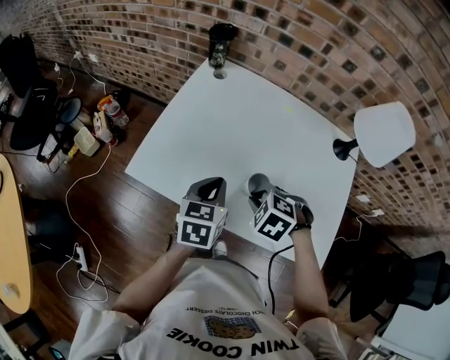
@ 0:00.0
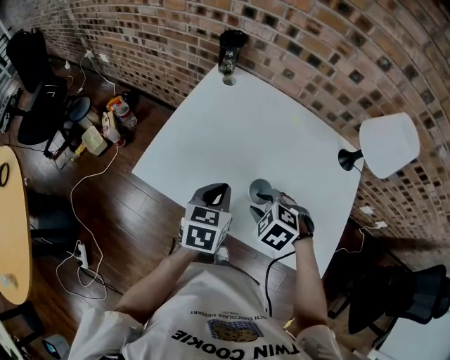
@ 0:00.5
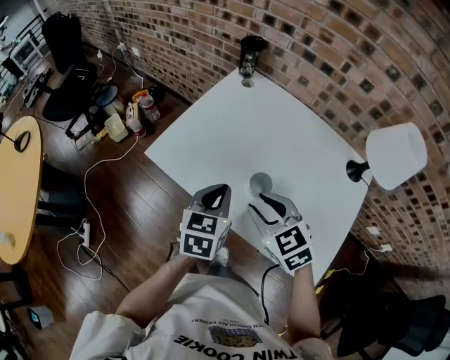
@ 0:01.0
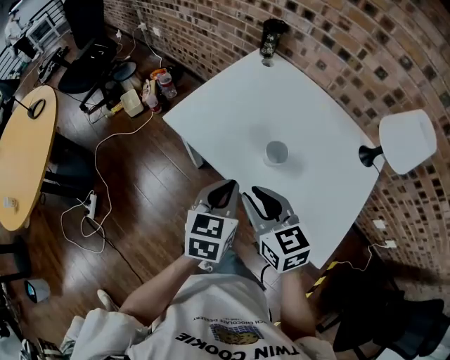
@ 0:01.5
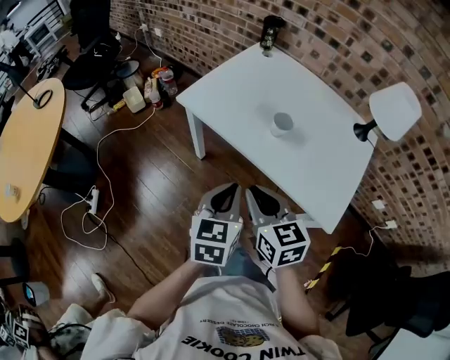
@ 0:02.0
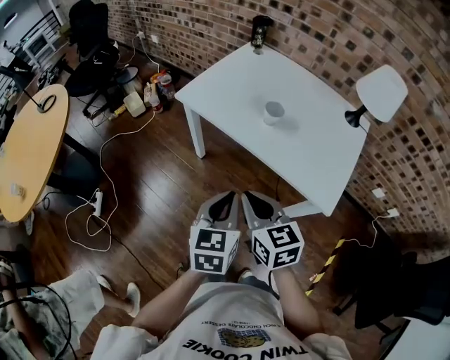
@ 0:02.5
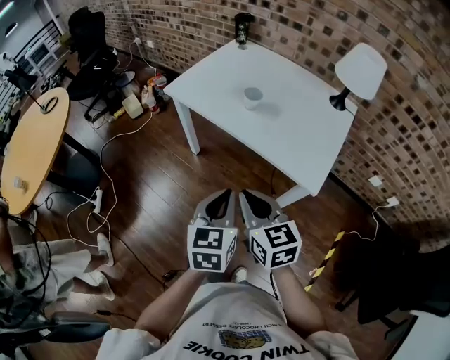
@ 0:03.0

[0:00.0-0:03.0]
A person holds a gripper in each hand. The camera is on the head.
0:00.0 to 0:01.5: The left gripper is displaced backward by about 15 cm. The right gripper heads backward, upward and to the left, covering approximately 15 cm, and tips its fingers upward by about 50 degrees.
0:01.5 to 0:03.0: Both grippers travel together backward, approximately 30 cm.

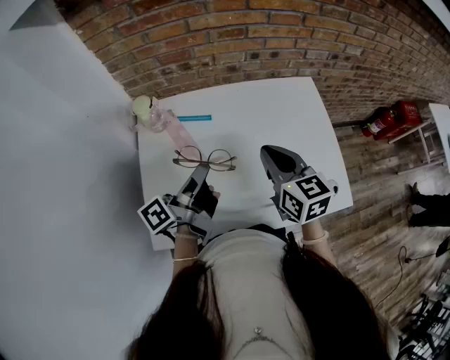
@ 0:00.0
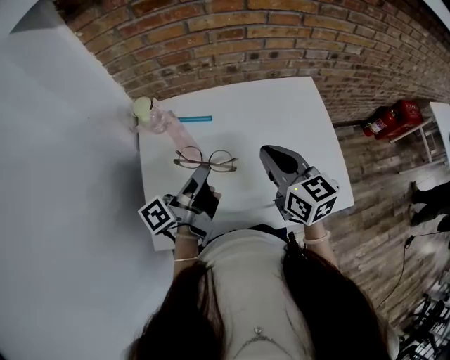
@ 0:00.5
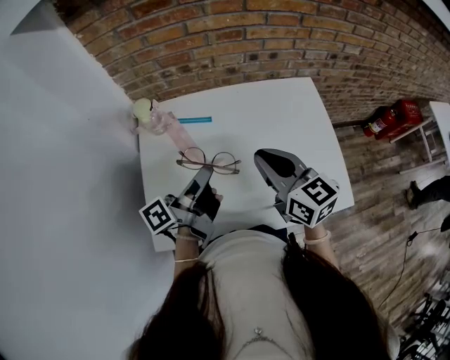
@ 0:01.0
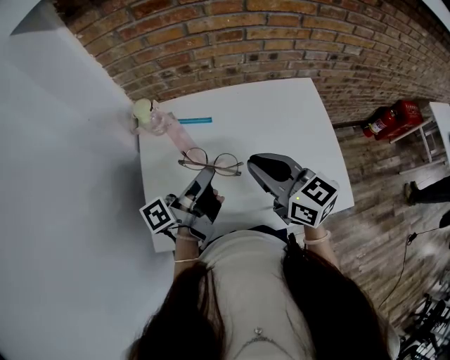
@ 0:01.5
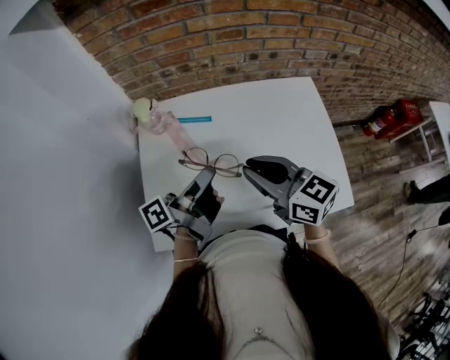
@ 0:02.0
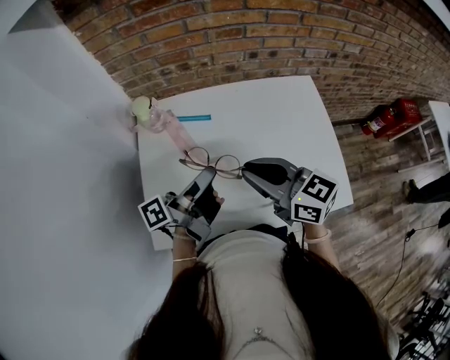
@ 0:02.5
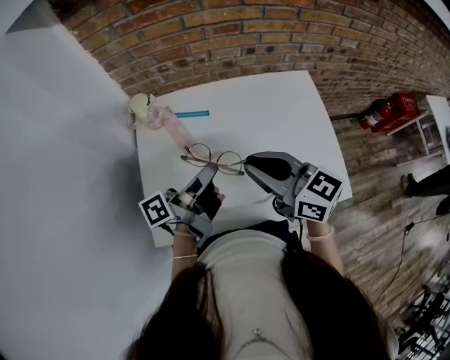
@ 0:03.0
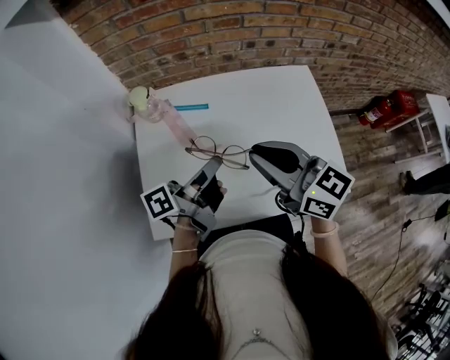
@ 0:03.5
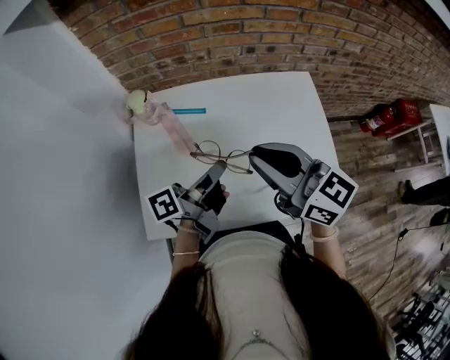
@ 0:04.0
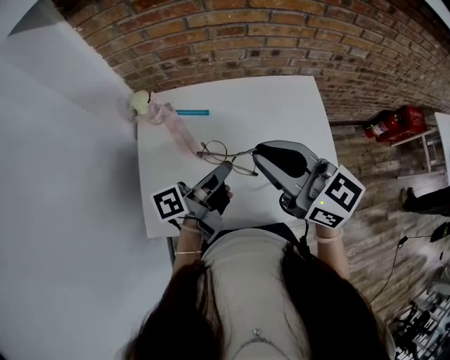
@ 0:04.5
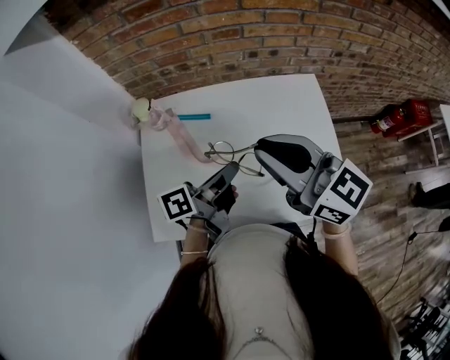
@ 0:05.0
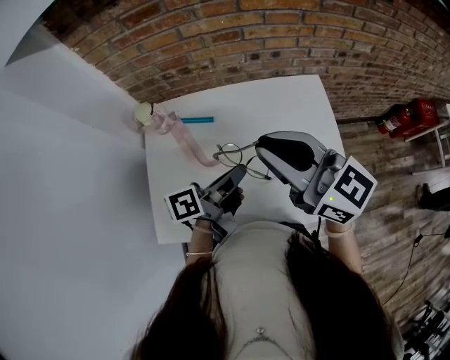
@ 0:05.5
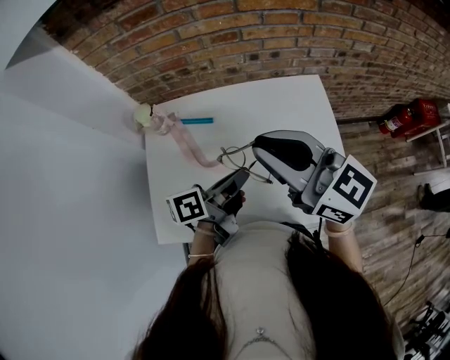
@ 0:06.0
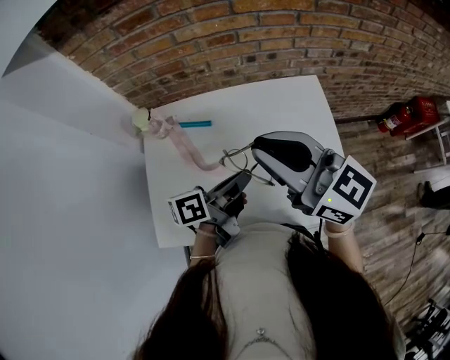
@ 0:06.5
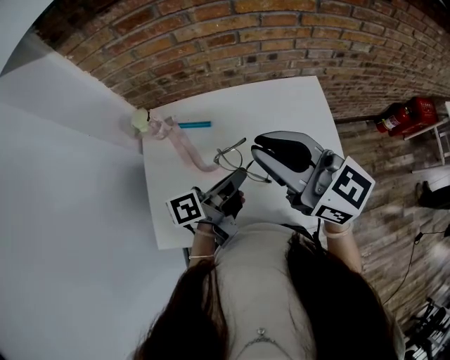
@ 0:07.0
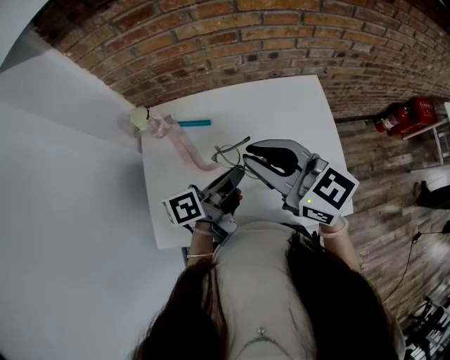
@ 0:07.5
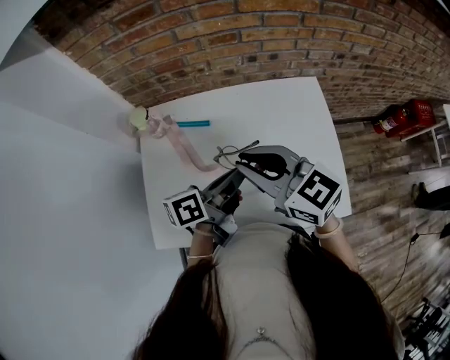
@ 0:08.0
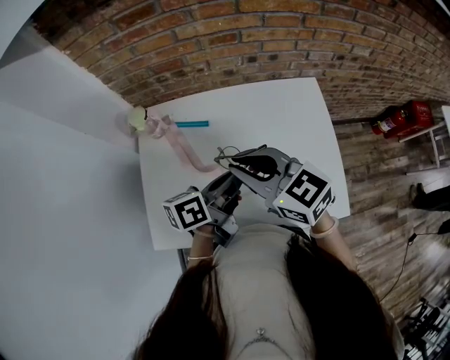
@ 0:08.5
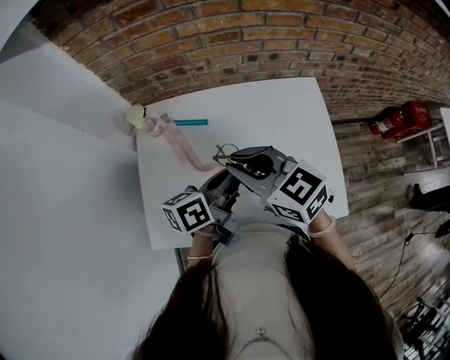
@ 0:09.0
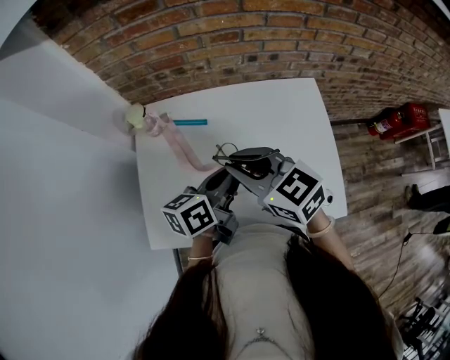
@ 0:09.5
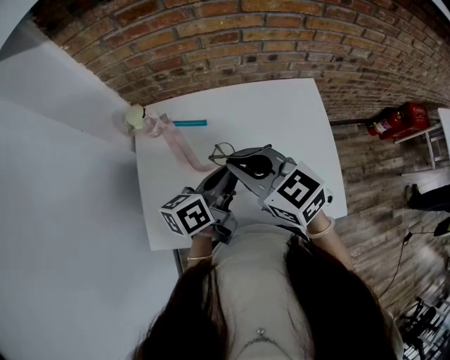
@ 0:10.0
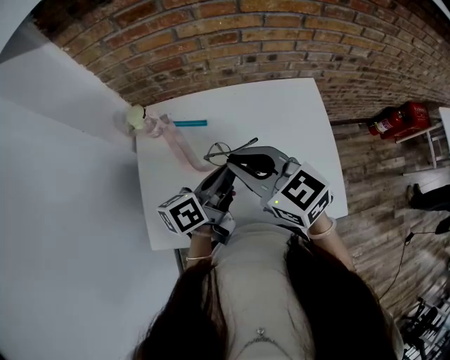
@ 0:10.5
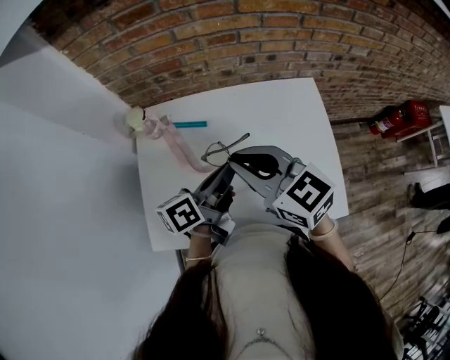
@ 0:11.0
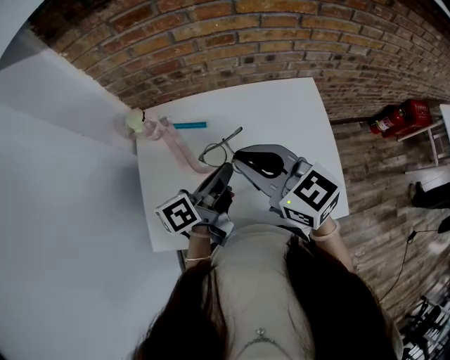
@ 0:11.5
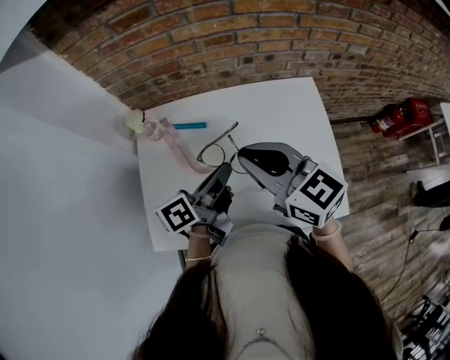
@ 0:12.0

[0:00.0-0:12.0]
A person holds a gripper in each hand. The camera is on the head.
0:00.0 to 0:02.0: The right gripper shifts by about 5 cm, and turns by about 30 degrees.
0:02.0 to 0:04.0: The right gripper shifts some 10 cm upward.
0:04.0 to 0:06.0: The right gripper goes about 5 cm upward.
0:06.0 to 0:08.0: The right gripper shifts about 10 cm downward.
0:10.0 to 0:12.0: The right gripper ends up approximately 5 cm from where it was.

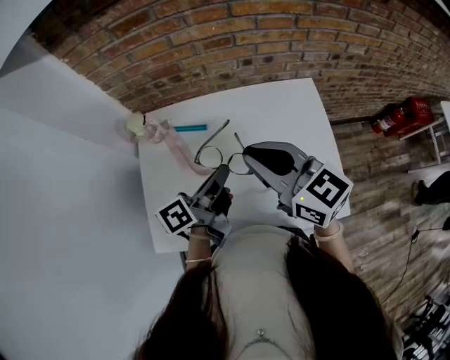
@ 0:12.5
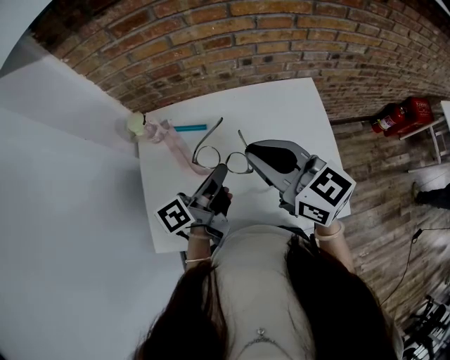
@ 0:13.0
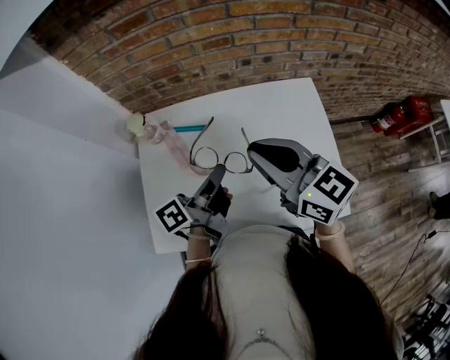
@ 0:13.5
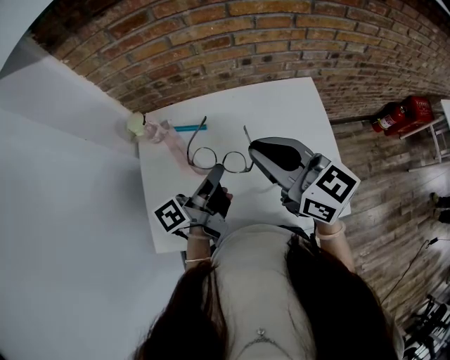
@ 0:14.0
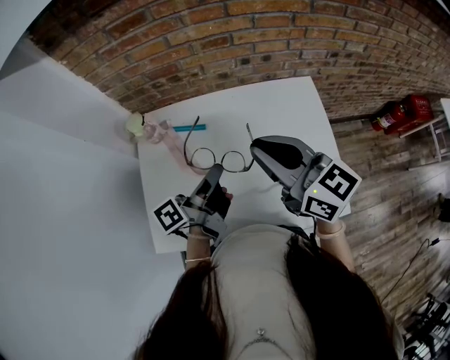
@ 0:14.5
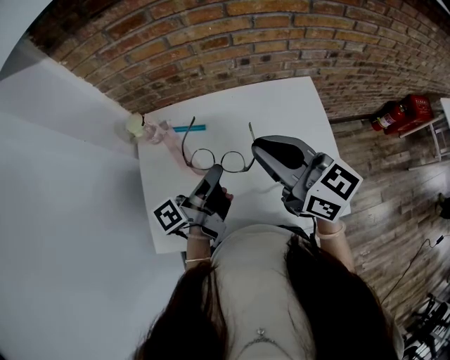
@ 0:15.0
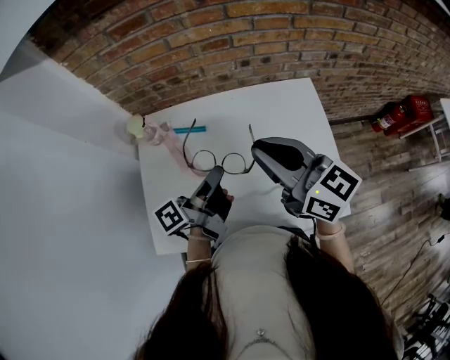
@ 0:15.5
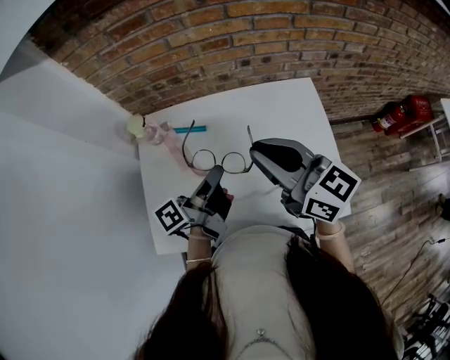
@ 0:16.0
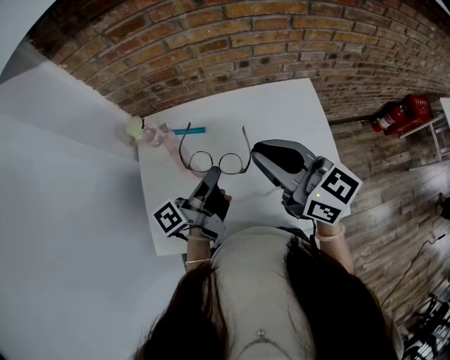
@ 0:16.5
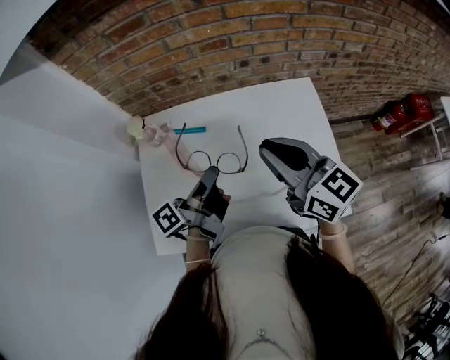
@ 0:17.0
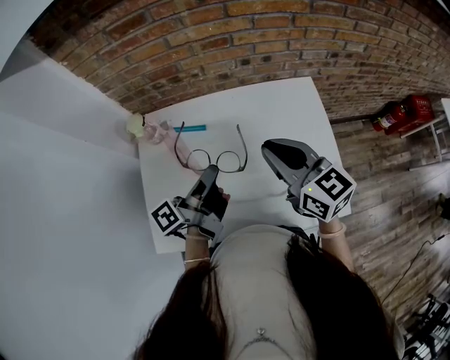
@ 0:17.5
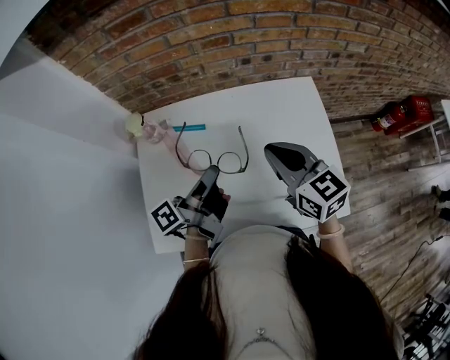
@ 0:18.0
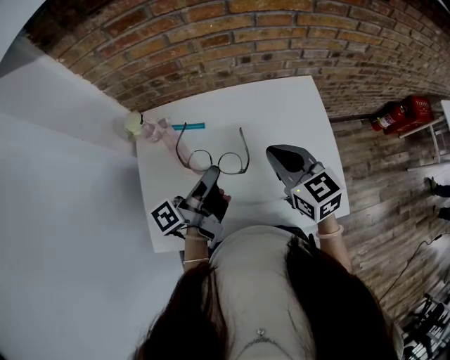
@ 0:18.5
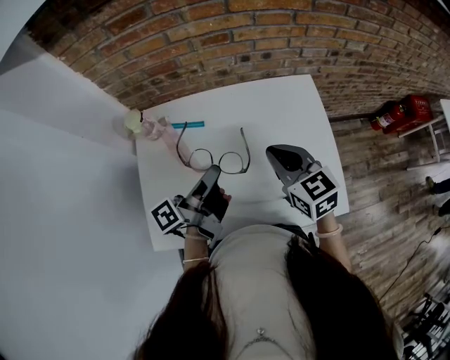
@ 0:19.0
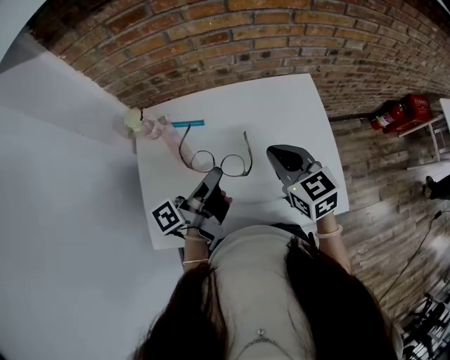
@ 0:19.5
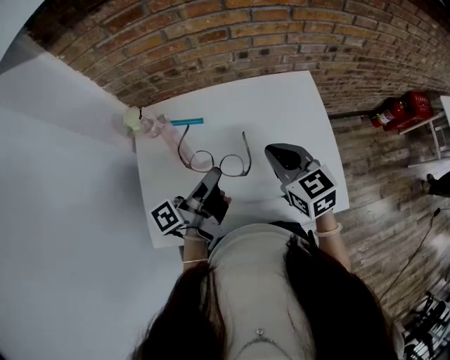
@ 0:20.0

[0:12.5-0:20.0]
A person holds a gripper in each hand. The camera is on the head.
0:16.5 to 0:18.0: The right gripper is displaced downward by some 10 cm.

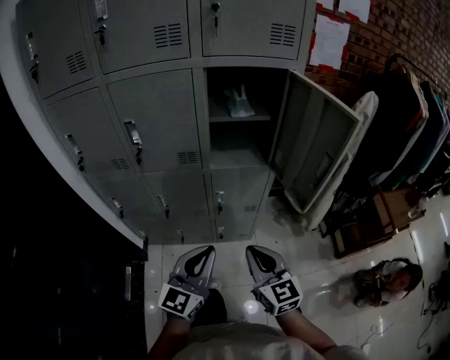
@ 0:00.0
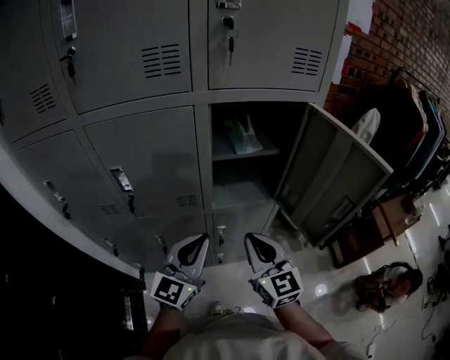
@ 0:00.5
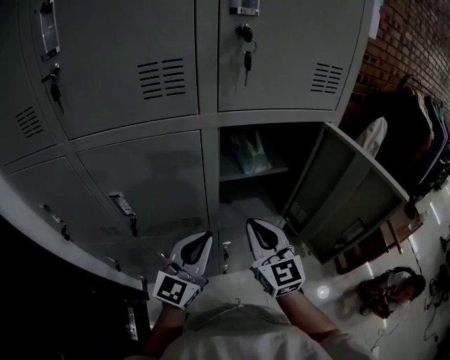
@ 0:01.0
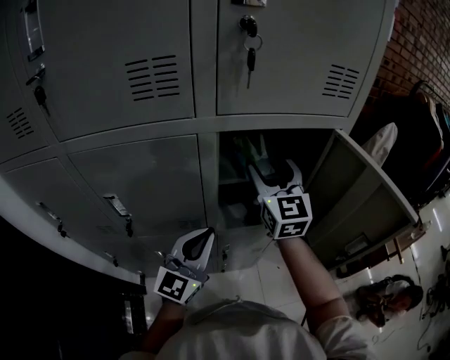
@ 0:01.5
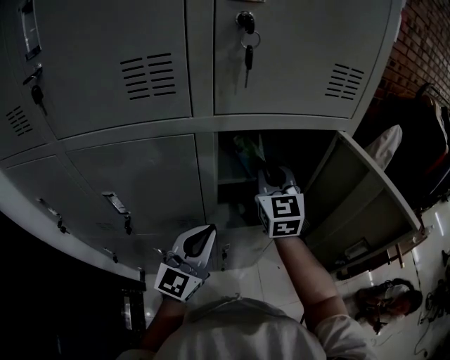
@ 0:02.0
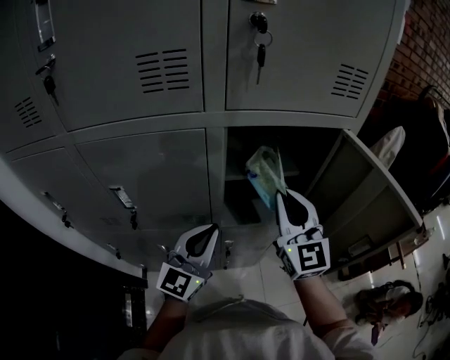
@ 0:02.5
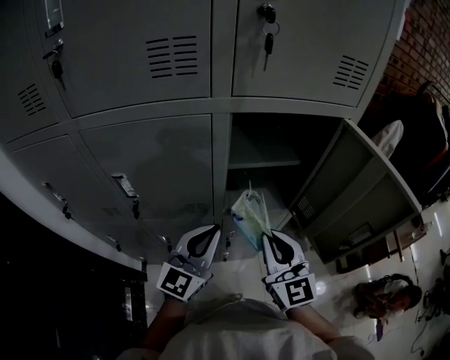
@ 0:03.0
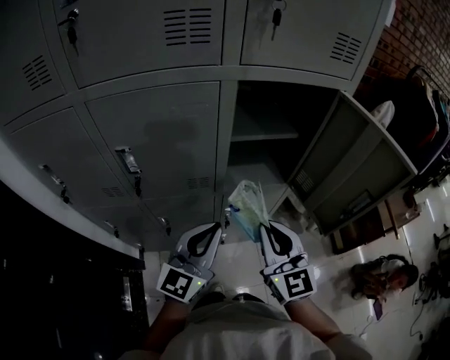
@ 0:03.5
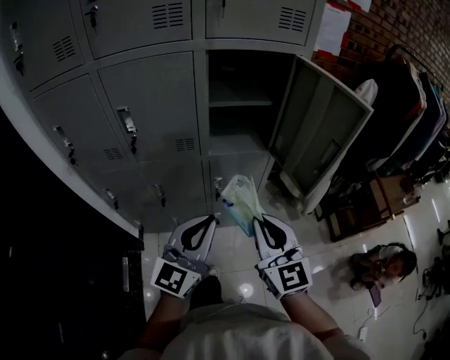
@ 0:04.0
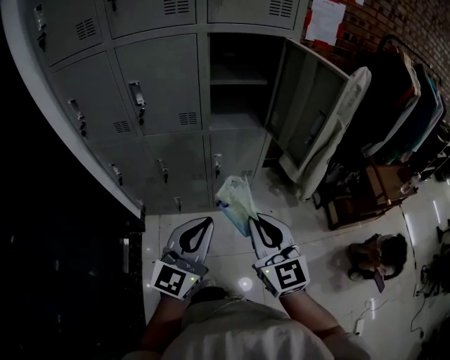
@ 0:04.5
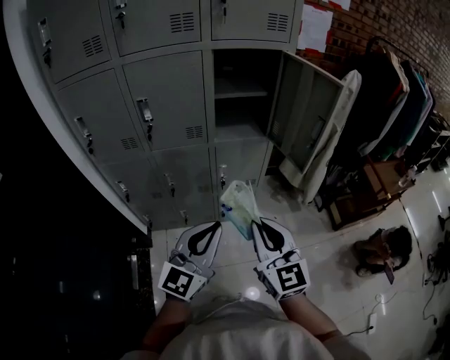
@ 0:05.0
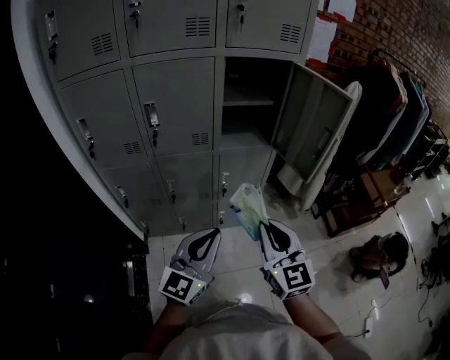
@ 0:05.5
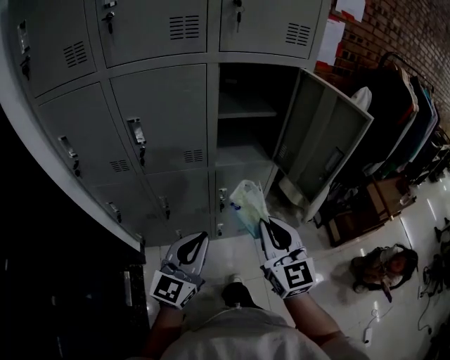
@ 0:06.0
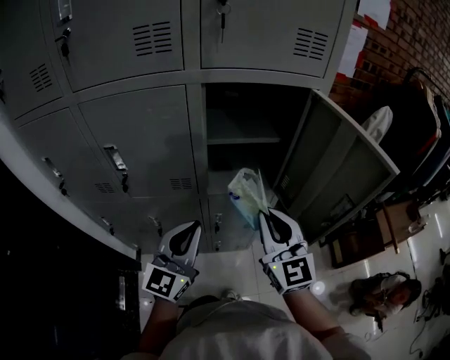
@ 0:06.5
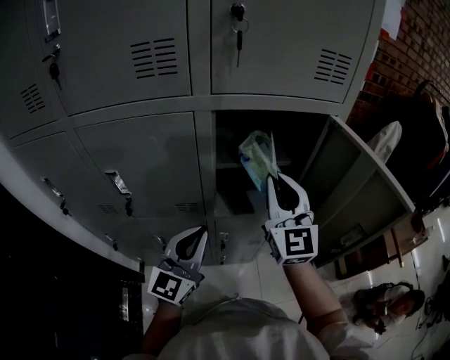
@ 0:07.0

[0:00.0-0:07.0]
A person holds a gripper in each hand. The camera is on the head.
0:00.0 to 0:02.0: The two grippers go about 35 cm forward. The right gripper rotates roughly 20 degrees, and opens and closes again.
0:02.0 to 0:03.5: The left gripper shifts some 10 cm backward. Meanwhile the right gripper shifts roughly 25 cm backward.
0:03.5 to 0:05.0: The grippers both shift backward by some 25 cm.
0:05.0 to 0:07.0: The two grippers go some 35 cm forward.
